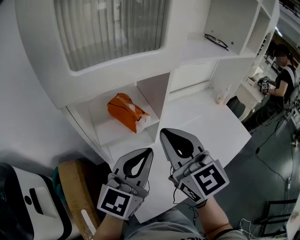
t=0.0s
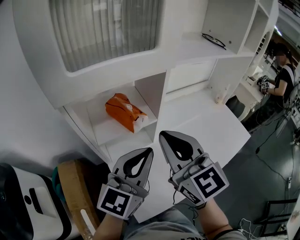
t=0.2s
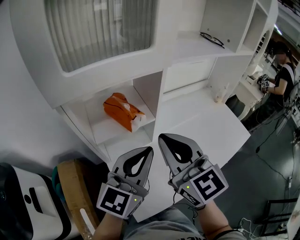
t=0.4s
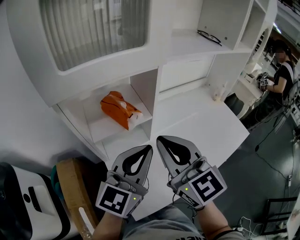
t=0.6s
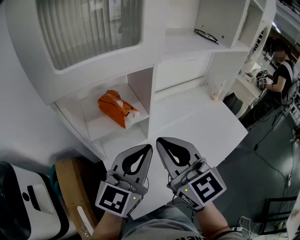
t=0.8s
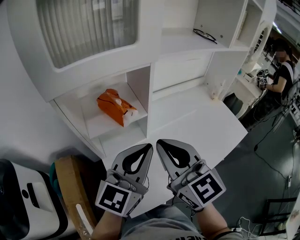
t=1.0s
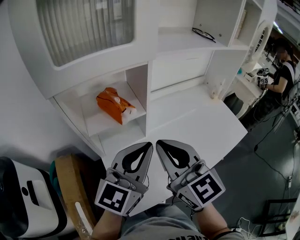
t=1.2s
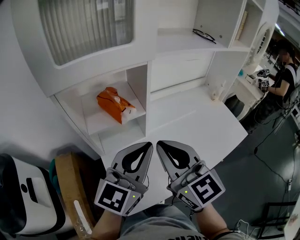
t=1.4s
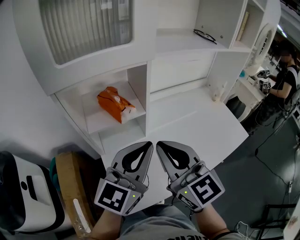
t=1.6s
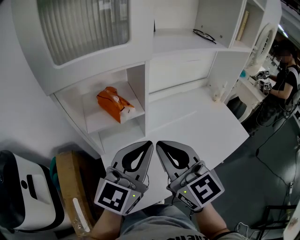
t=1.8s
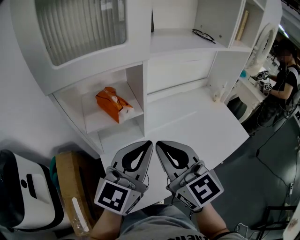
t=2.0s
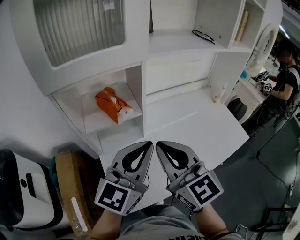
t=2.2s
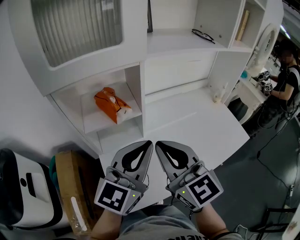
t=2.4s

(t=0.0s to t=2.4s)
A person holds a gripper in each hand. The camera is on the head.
t=0.0s - t=1.2s: The left gripper moves to the right, roughly 5 cm. The right gripper travels backward by some 5 cm.
t=1.2s - t=2.4s: The grippers make only small movements.

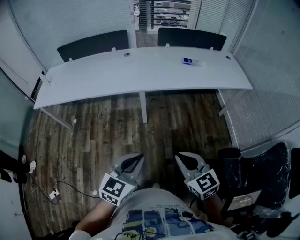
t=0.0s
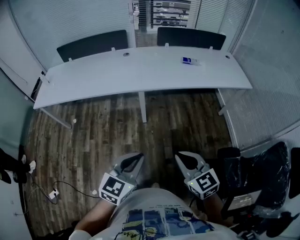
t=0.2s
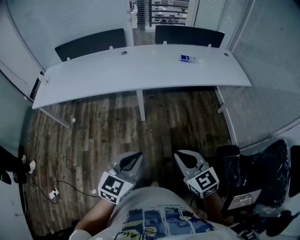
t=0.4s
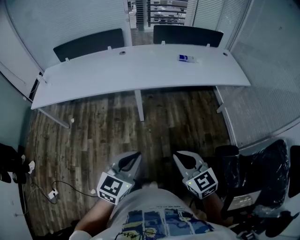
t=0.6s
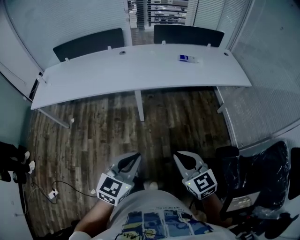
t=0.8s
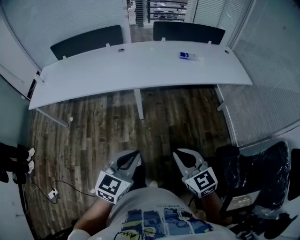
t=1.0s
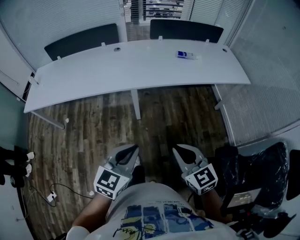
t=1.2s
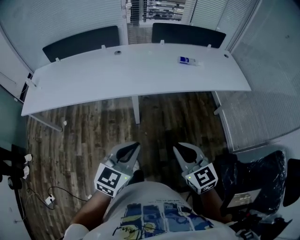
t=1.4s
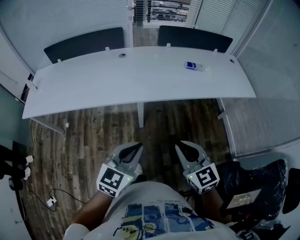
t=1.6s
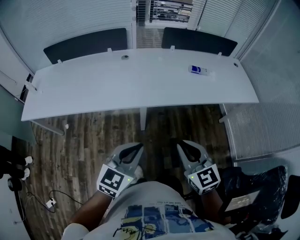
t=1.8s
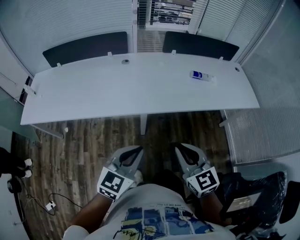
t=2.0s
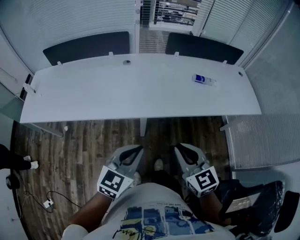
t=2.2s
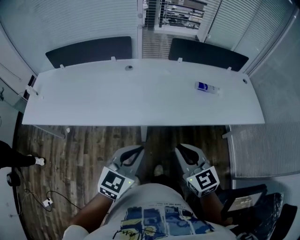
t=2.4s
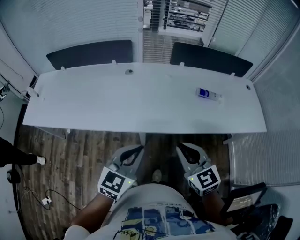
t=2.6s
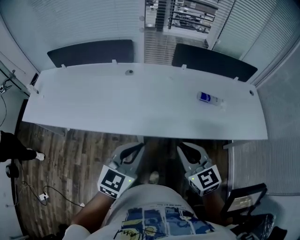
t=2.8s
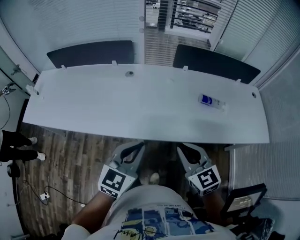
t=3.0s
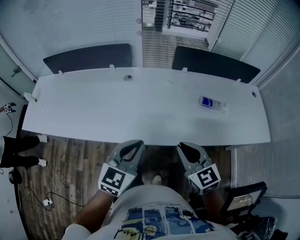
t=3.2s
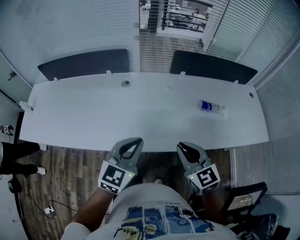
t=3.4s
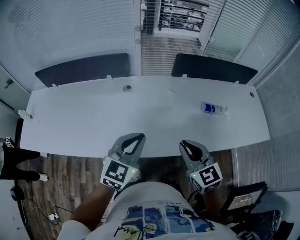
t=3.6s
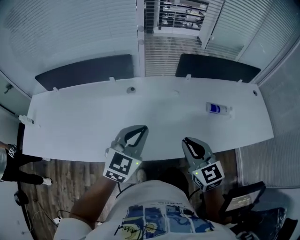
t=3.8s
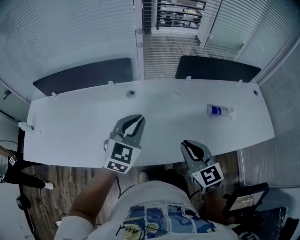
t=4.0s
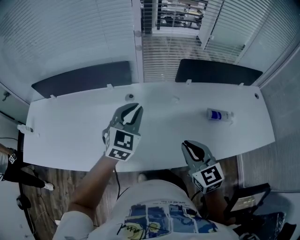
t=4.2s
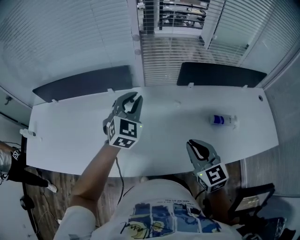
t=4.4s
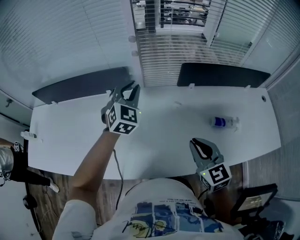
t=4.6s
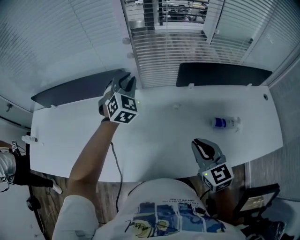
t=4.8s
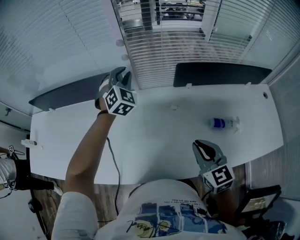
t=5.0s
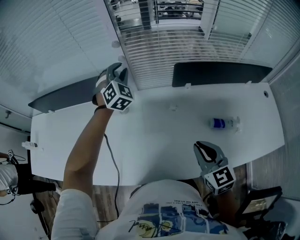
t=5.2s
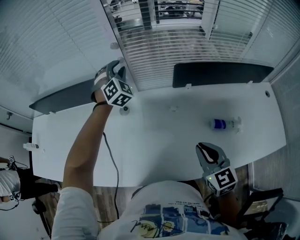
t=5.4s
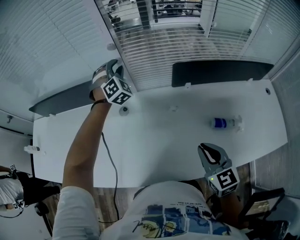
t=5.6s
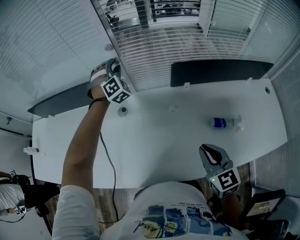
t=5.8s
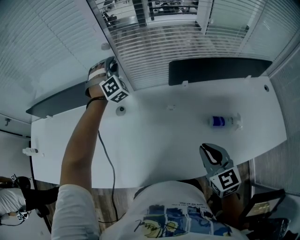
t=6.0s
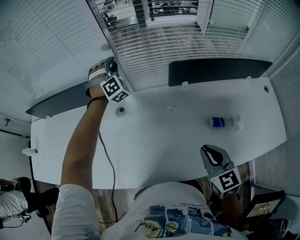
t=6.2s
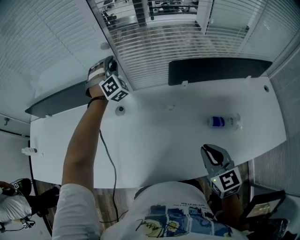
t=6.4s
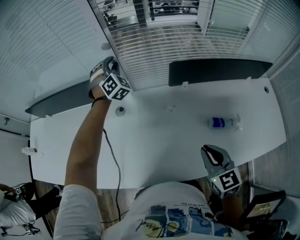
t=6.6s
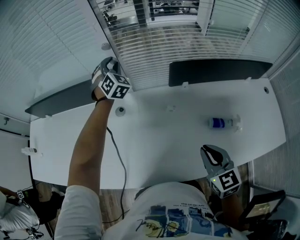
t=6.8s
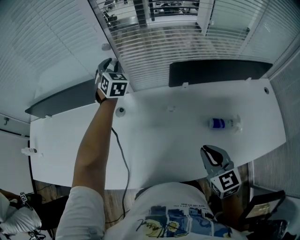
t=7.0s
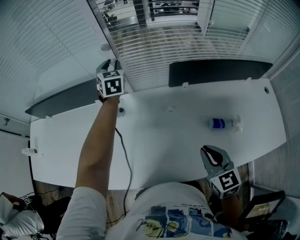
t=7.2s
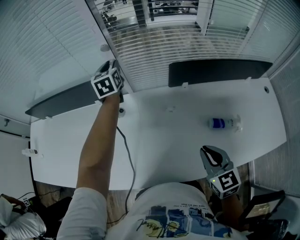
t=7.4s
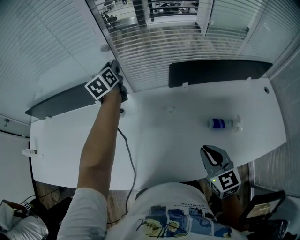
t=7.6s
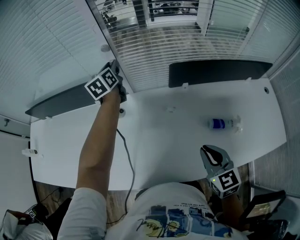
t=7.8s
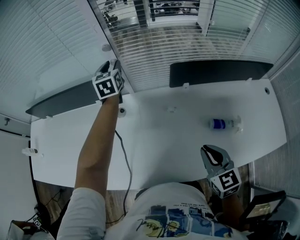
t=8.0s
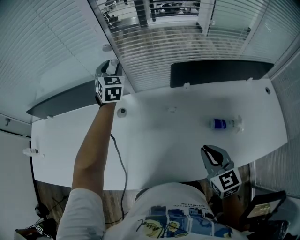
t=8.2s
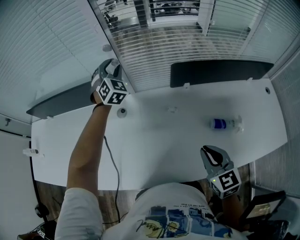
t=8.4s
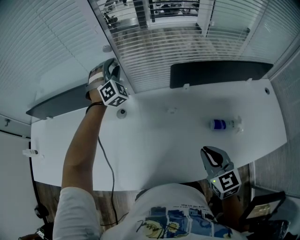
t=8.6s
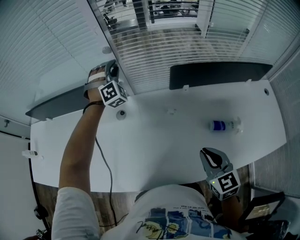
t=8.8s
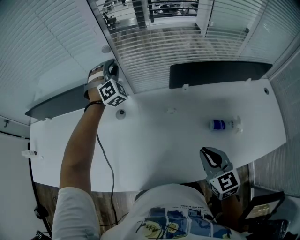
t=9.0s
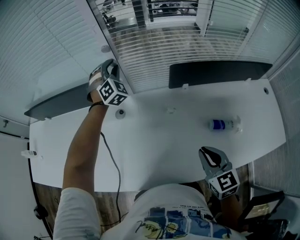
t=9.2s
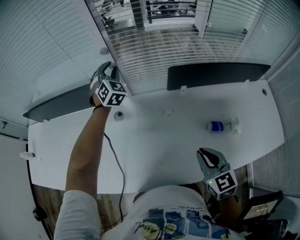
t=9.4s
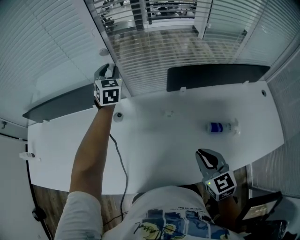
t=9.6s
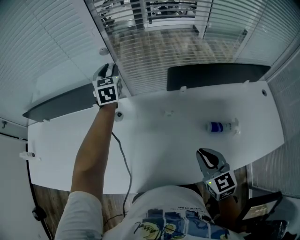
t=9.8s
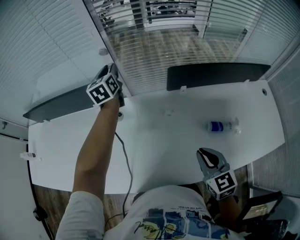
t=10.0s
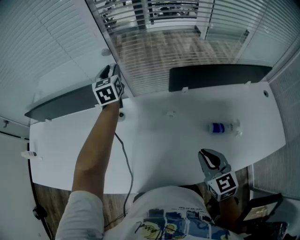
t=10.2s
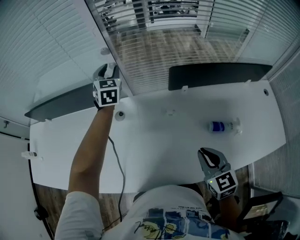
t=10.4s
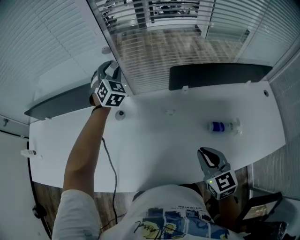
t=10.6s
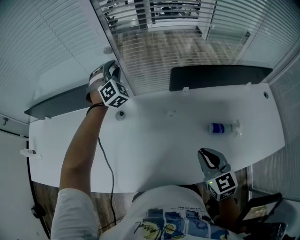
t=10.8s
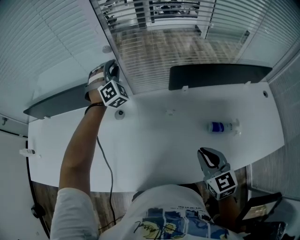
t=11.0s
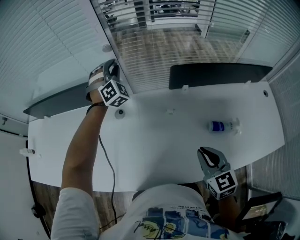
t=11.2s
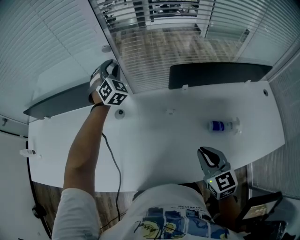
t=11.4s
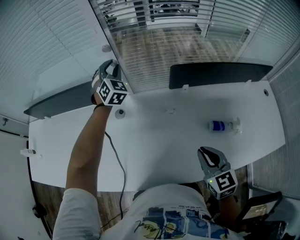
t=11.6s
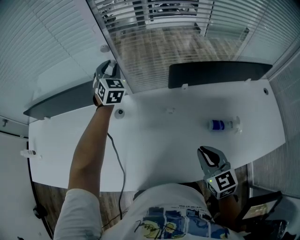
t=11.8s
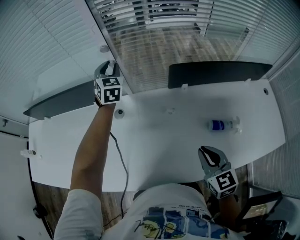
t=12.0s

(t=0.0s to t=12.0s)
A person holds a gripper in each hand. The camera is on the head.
t=0.0s - t=1.6s: Both grippers move forward, about 20 cm.
t=1.6s - t=3.0s: Both grippers travel together forward, some 30 cm.
t=3.0s - t=4.4s: The left gripper is displaced forward by approximately 40 cm, and changes its angle by some 30 degrees. The right gripper travels forward by about 20 cm.
t=4.4s - t=6.0s: The left gripper is displaced forward by roughly 25 cm, and rotates around the line of its fingers by approximately 40 degrees, clockwise from behind. The right gripper shifts some 10 cm to the right.
t=6.0s - t=7.6s: The left gripper rotates around the line of its fingers by some 100 degrees, counterclockwise from behind.
t=7.6s - t=9.0s: The left gripper rotates around the line of its fingers by about 100 degrees, clockwise from behind.
t=9.0s - t=10.4s: The left gripper rolls counterclockwise, seen from behind, by approximately 50 degrees.

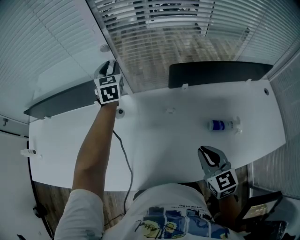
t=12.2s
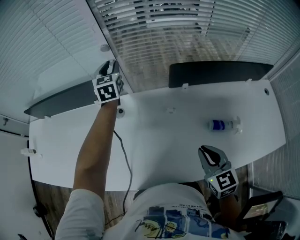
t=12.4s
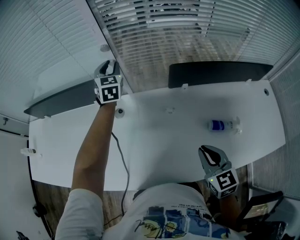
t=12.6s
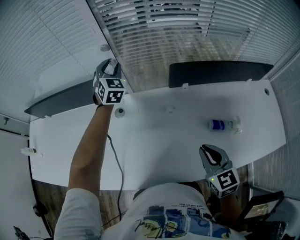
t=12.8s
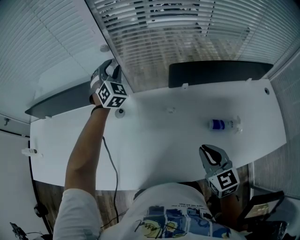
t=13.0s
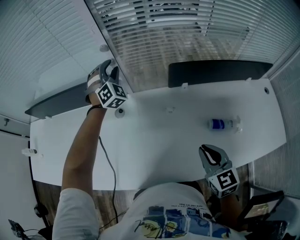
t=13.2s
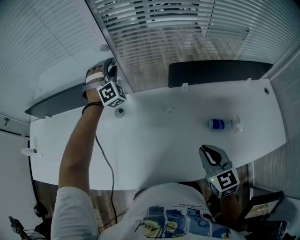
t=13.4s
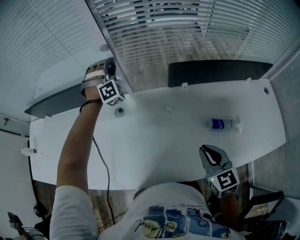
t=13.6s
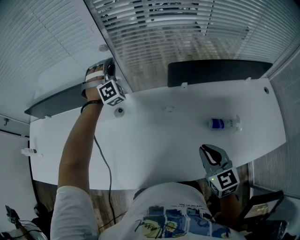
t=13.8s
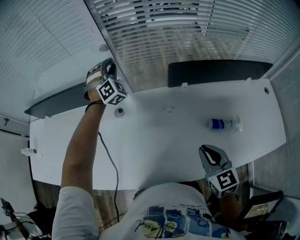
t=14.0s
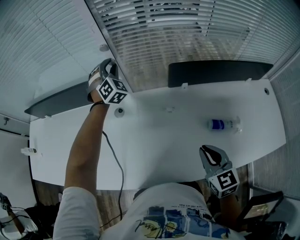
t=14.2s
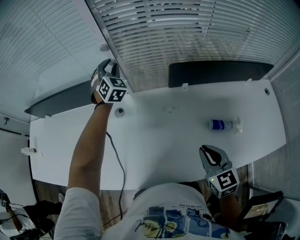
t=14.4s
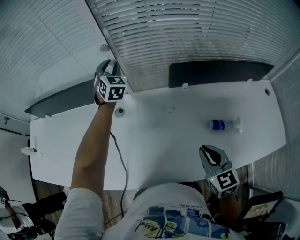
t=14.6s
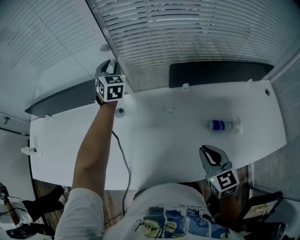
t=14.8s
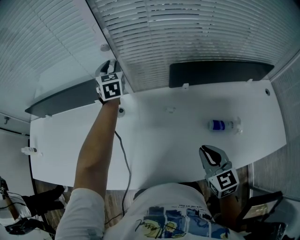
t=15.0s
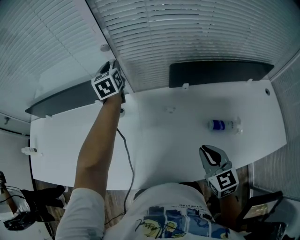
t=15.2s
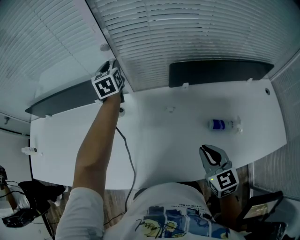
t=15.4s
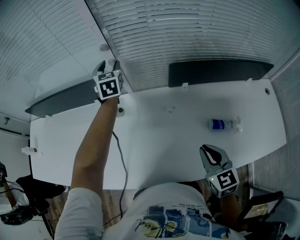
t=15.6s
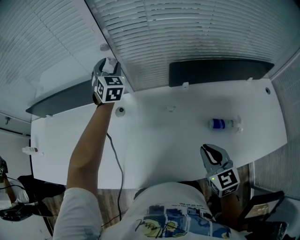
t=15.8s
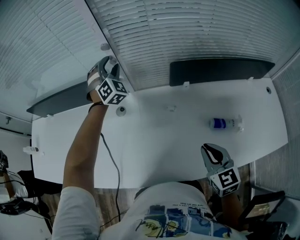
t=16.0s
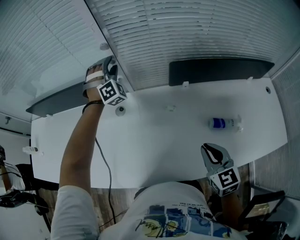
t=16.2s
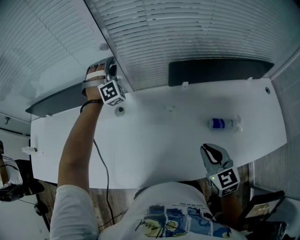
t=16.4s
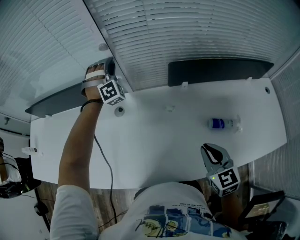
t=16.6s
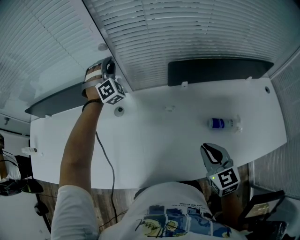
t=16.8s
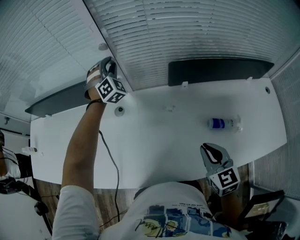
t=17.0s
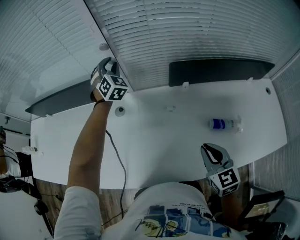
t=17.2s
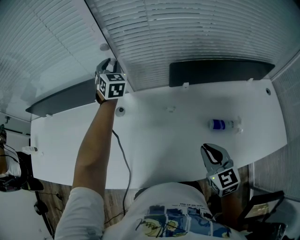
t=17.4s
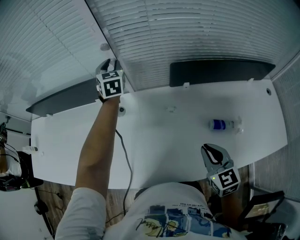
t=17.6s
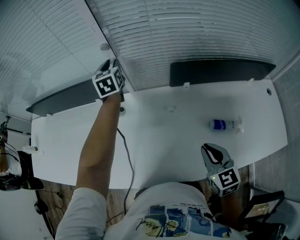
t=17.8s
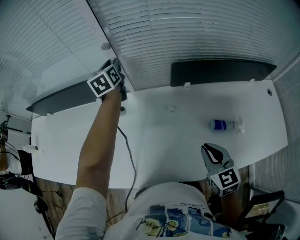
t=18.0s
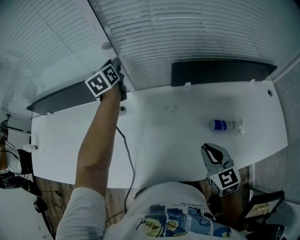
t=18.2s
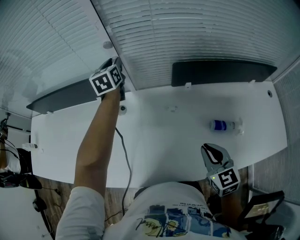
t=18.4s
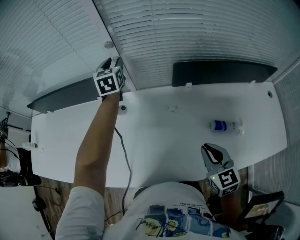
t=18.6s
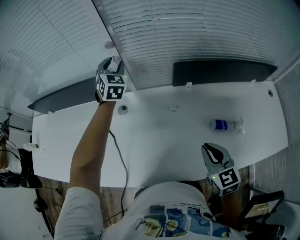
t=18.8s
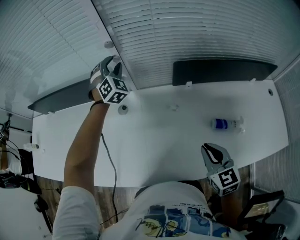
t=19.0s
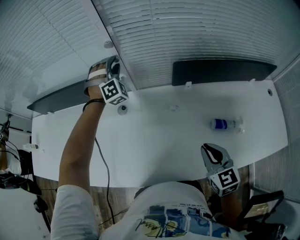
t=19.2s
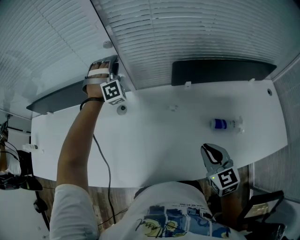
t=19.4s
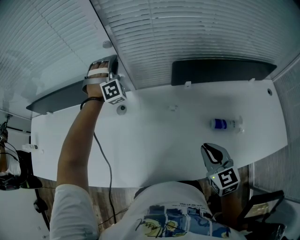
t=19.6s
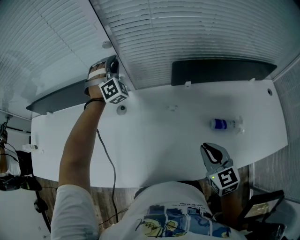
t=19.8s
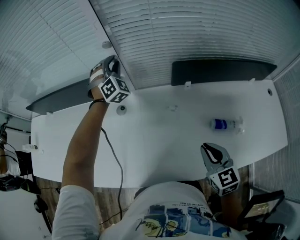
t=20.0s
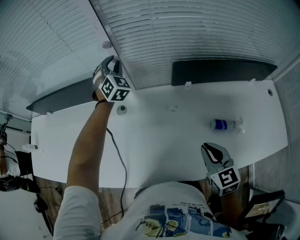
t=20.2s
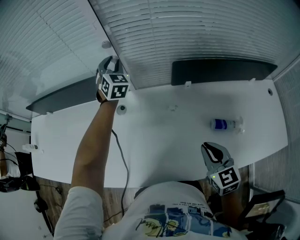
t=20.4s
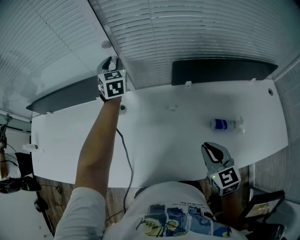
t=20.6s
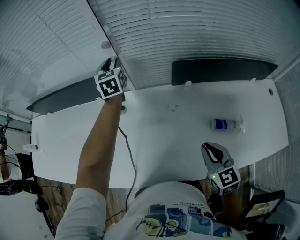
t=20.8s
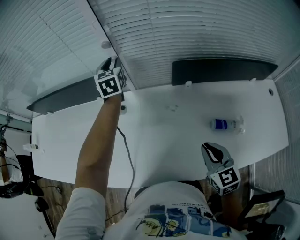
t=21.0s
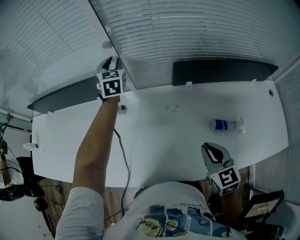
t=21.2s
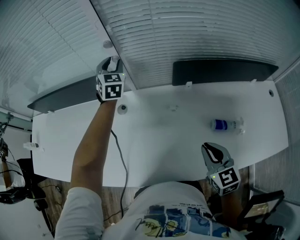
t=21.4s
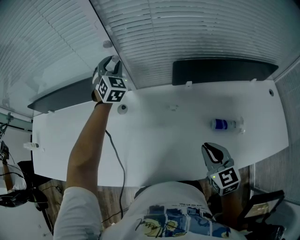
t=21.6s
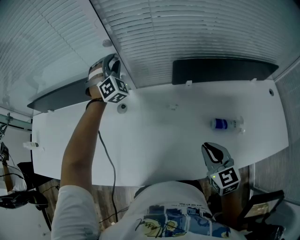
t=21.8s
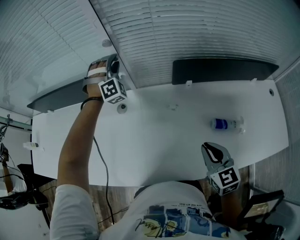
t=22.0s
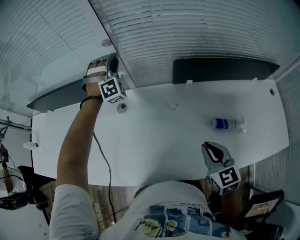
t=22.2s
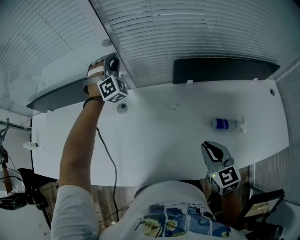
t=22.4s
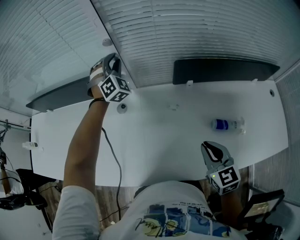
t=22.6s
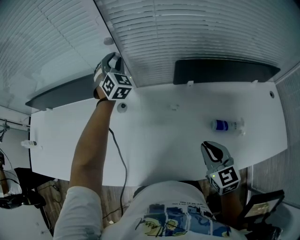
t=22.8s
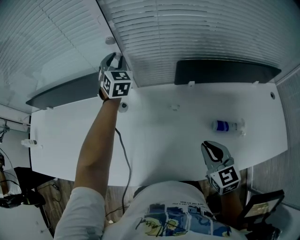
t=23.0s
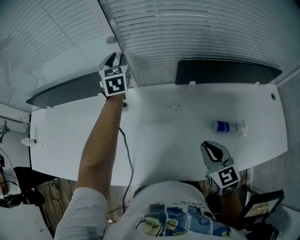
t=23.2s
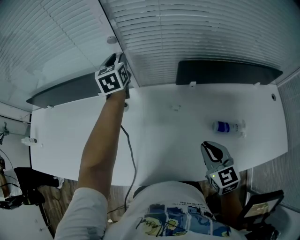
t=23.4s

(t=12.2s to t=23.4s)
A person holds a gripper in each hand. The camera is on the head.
t=12.2s - t=13.8s: The left gripper rolls clockwise, seen from behind, by roughly 70 degrees.
t=13.8s - t=15.4s: The left gripper twists roughly 90 degrees counterclockwise, seen from behind.
t=15.4s - t=17.0s: The left gripper twists approximately 70 degrees clockwise, seen from behind, and opens, then closes again.
t=17.0s - t=18.6s: The left gripper twists about 60 degrees counterclockwise, seen from behind.
t=18.6s - t=20.2s: The left gripper rolls clockwise, seen from behind, by approximately 50 degrees.
t=20.2s - t=21.8s: The left gripper swivels roughly 20 degrees.
t=21.8s - t=23.4s: The left gripper twists roughly 70 degrees counterclockwise, seen from behind.
